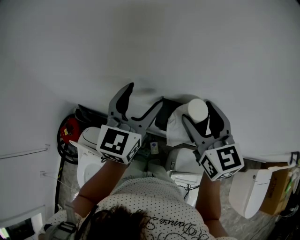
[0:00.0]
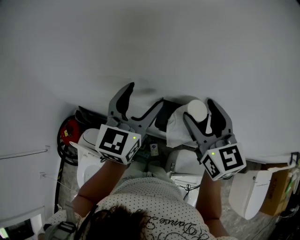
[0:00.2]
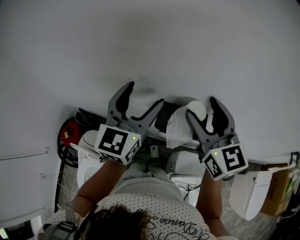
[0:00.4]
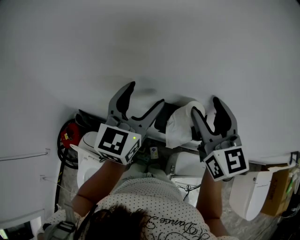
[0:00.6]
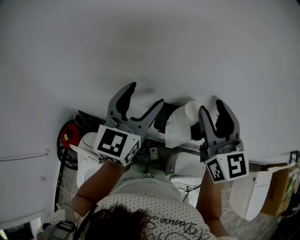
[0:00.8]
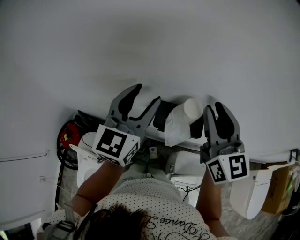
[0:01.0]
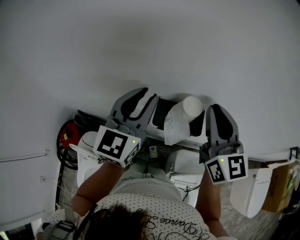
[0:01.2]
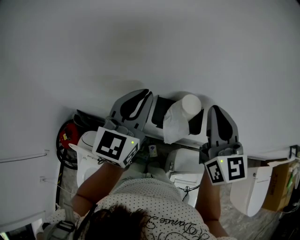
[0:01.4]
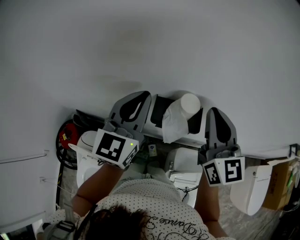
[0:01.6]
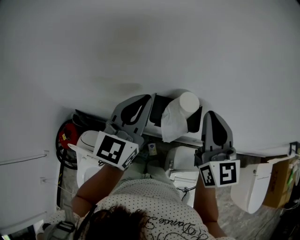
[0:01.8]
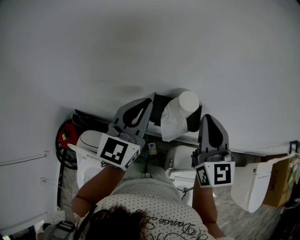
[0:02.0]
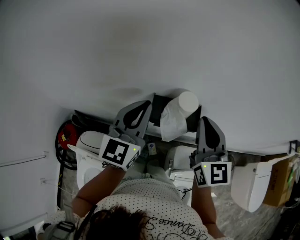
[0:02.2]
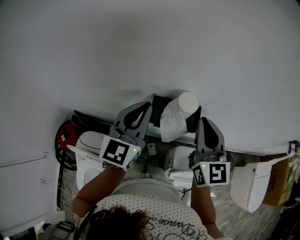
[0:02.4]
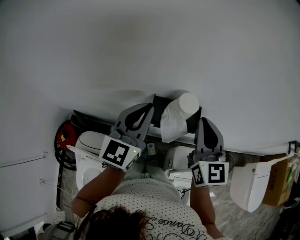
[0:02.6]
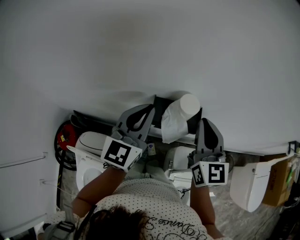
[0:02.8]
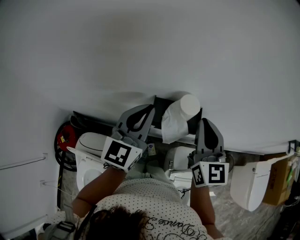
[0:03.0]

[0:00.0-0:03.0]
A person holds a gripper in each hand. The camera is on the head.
0:00.0 to 0:01.6: The right gripper is displaced to the right by about 5 cm, rotates roughly 20 degrees, and closes up. The left gripper closes.
0:01.6 to 0:03.0: The right gripper heads downward, covering some 5 cm, while the left gripper shifts by some 5 cm.

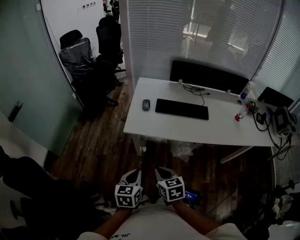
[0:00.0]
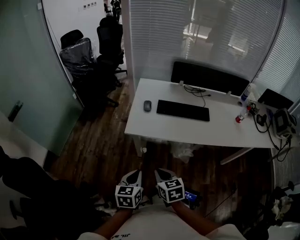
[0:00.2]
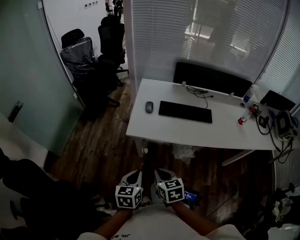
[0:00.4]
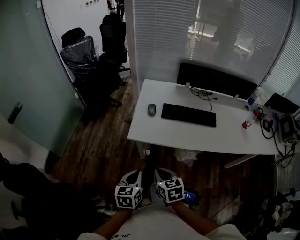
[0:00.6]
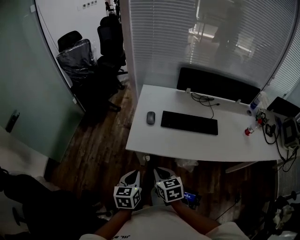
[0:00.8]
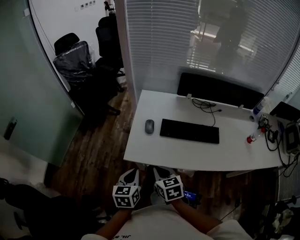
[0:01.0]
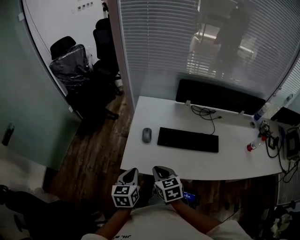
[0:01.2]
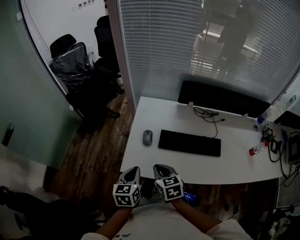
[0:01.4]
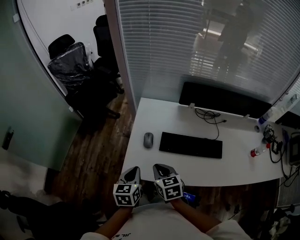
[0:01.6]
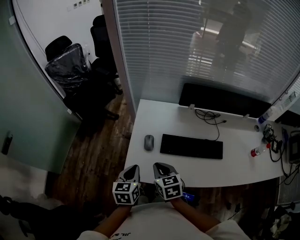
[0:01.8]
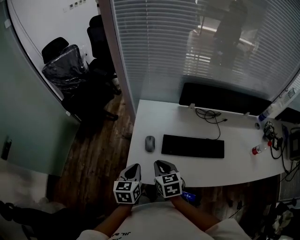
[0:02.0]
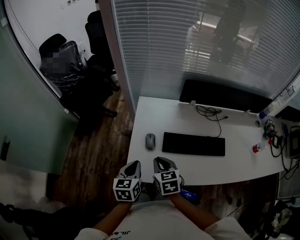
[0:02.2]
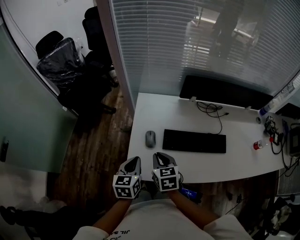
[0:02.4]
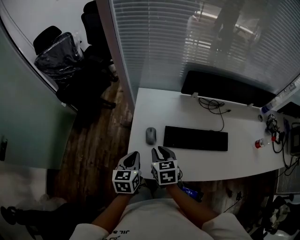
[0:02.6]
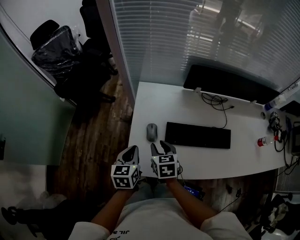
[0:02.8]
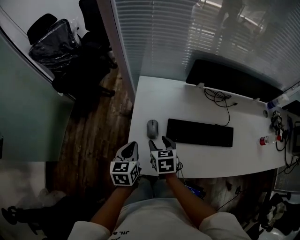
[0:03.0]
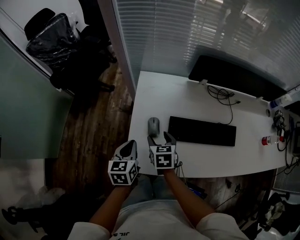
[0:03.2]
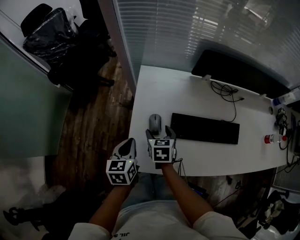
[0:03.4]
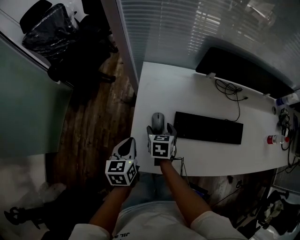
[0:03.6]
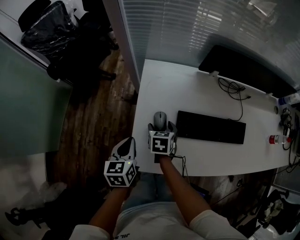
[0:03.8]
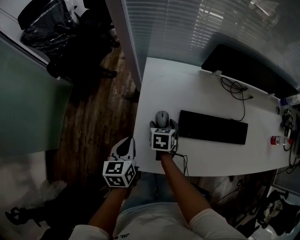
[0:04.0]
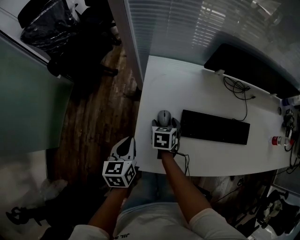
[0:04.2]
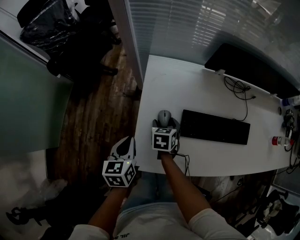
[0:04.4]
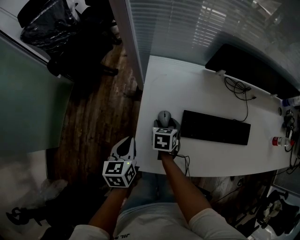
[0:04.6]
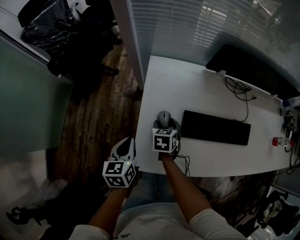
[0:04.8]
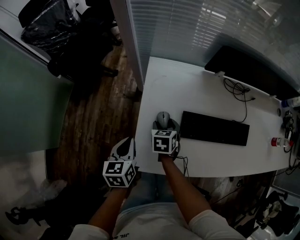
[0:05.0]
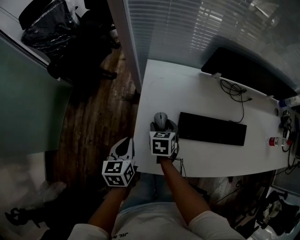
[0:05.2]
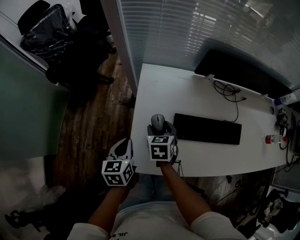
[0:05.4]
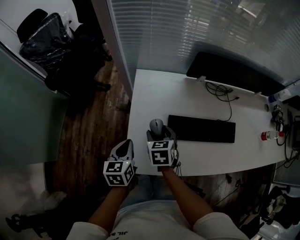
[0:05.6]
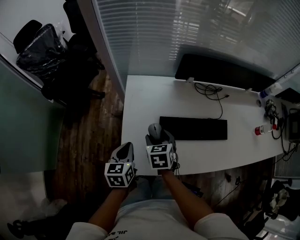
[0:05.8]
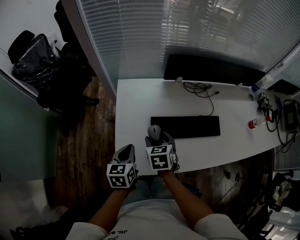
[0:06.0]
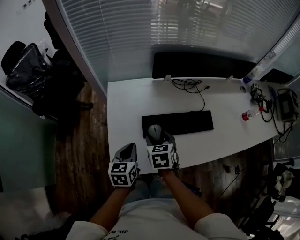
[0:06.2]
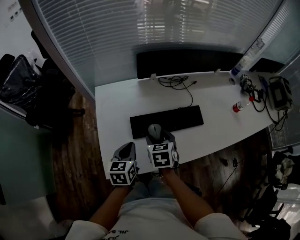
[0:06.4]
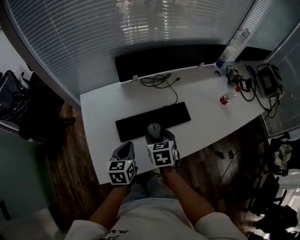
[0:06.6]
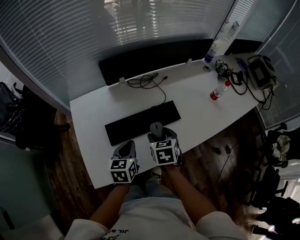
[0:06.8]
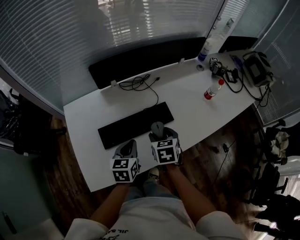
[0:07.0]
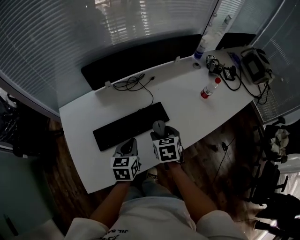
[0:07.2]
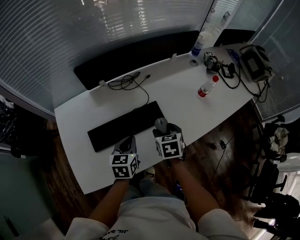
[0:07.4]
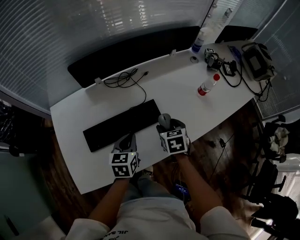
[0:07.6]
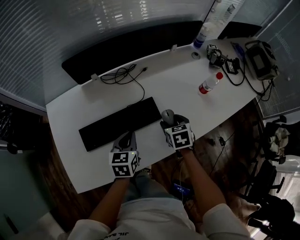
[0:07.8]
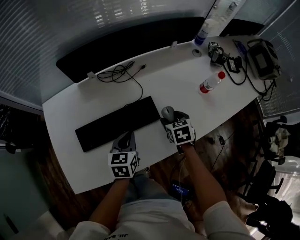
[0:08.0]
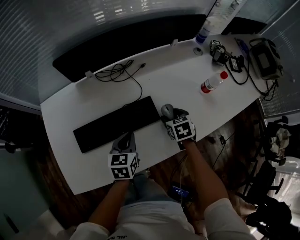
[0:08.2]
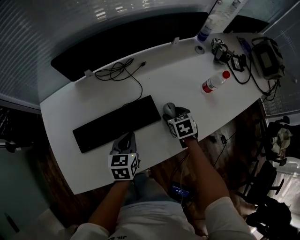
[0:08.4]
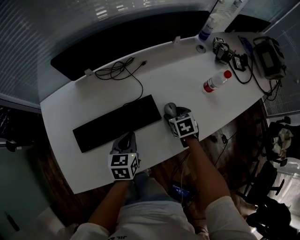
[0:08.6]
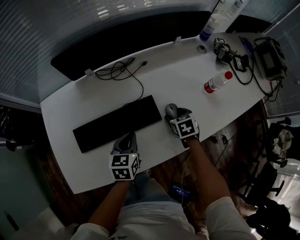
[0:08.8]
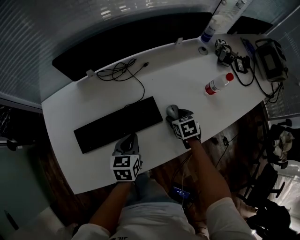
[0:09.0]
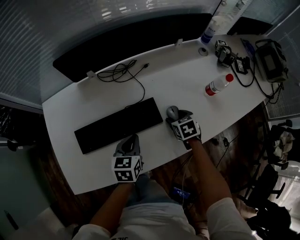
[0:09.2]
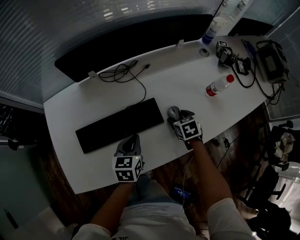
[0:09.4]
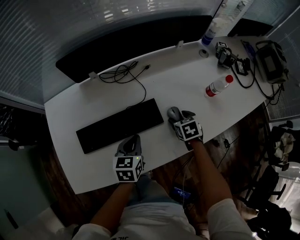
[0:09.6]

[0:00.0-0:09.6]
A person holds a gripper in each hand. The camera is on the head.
0:00.0 to 0:01.6: Both grippers move forward, about 35 cm.
0:01.6 to 0:03.2: The two grippers go approximately 15 cm forward and downward. The right gripper opens up.
0:03.2 to 0:04.8: The left gripper goes some 5 cm to the left; the right gripper is displaced downward and forward by some 10 cm.
0:04.8 to 0:06.4: The right gripper shifts some 25 cm to the right, upward and backward; the left gripper is displaced to the right by roughly 20 cm, and turns by about 20 degrees.
0:06.4 to 0:08.0: Both grippers travel together to the right and forward, some 35 cm.
0:08.0 to 0:09.6: The right gripper travels downward by about 5 cm.

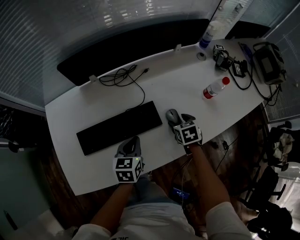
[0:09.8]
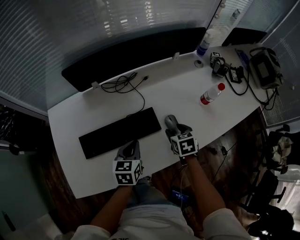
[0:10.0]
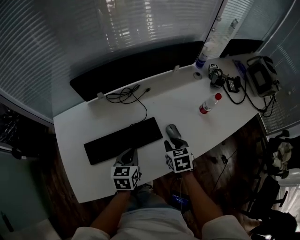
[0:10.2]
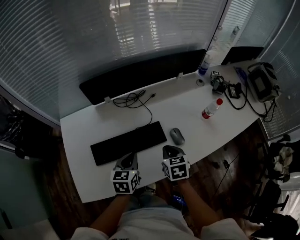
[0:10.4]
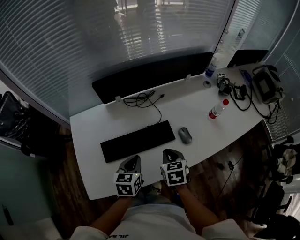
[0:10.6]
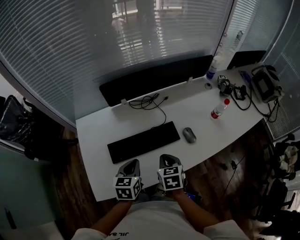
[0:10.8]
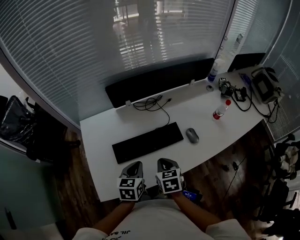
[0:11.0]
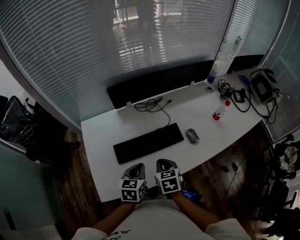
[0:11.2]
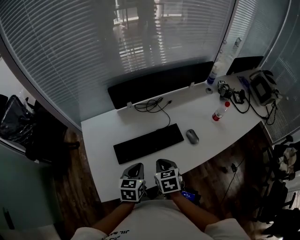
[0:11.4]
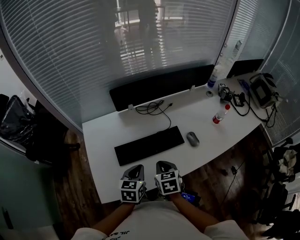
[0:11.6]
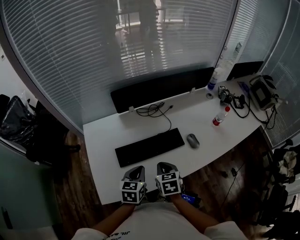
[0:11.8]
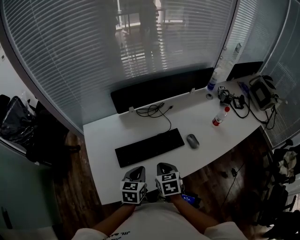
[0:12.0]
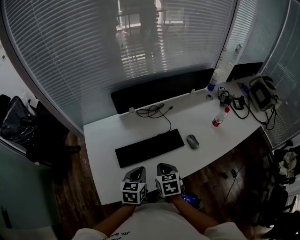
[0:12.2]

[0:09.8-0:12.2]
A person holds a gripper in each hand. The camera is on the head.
0:09.8 to 0:11.0: The left gripper is displaced to the left, upward and backward by roughly 20 cm. Meanwhile the right gripper goes approximately 30 cm to the left, backward and upward, and closes its fingers.
0:11.0 to 0:12.2: There are only small adjustments of the grippers.

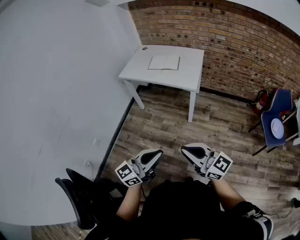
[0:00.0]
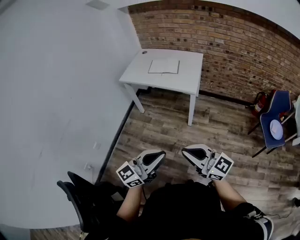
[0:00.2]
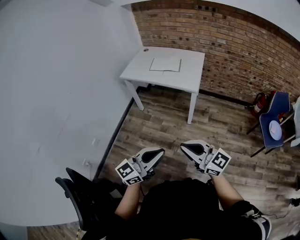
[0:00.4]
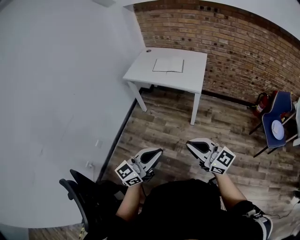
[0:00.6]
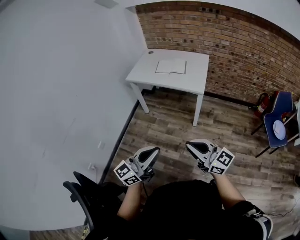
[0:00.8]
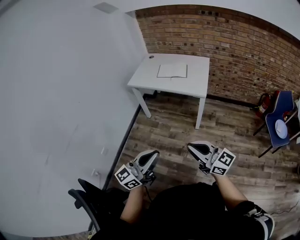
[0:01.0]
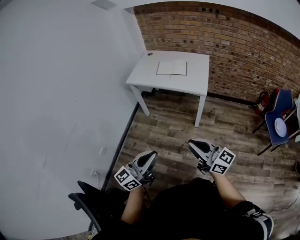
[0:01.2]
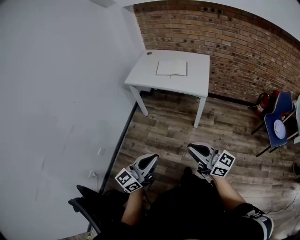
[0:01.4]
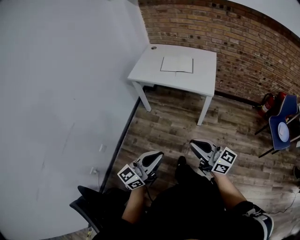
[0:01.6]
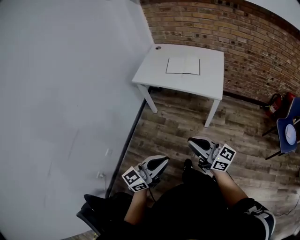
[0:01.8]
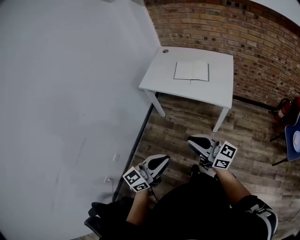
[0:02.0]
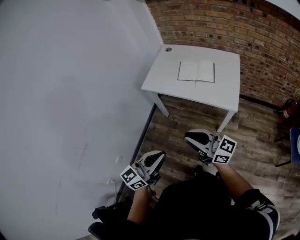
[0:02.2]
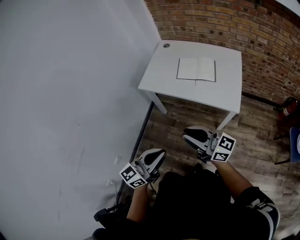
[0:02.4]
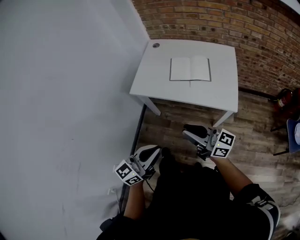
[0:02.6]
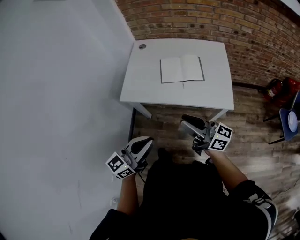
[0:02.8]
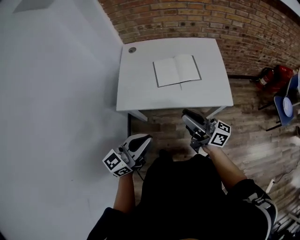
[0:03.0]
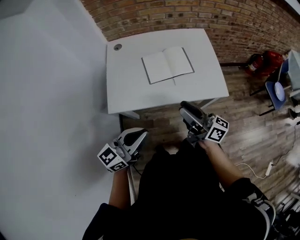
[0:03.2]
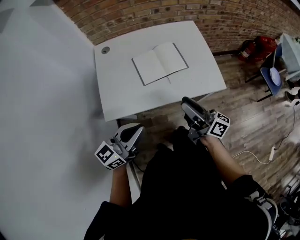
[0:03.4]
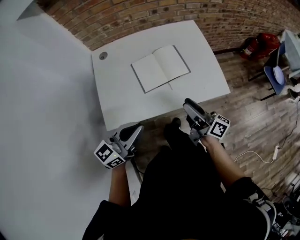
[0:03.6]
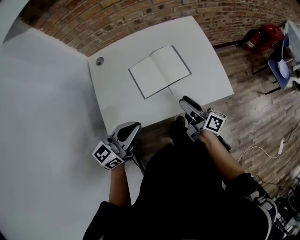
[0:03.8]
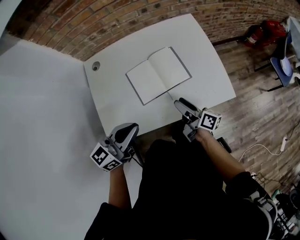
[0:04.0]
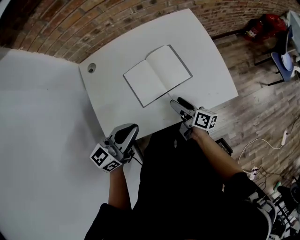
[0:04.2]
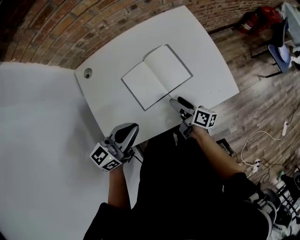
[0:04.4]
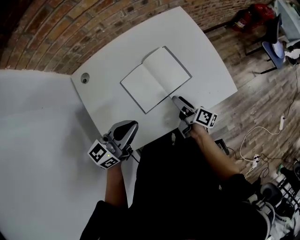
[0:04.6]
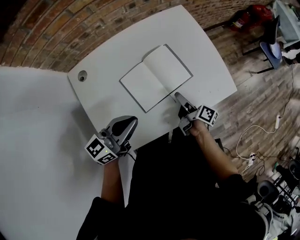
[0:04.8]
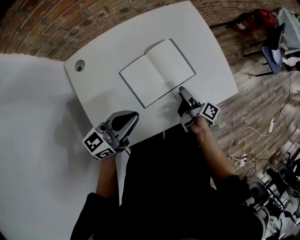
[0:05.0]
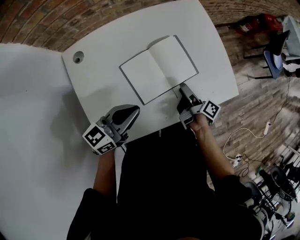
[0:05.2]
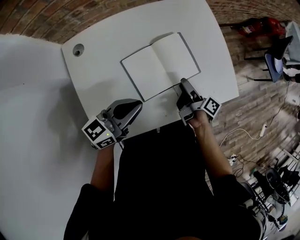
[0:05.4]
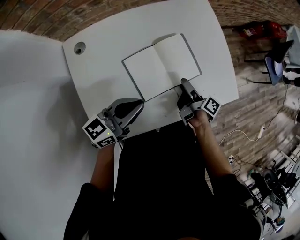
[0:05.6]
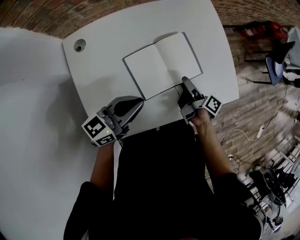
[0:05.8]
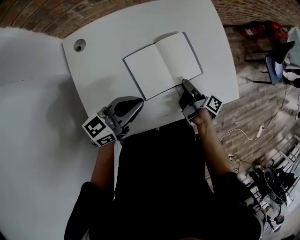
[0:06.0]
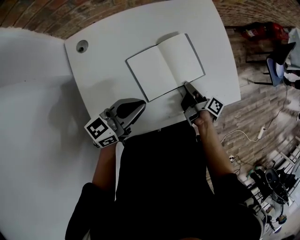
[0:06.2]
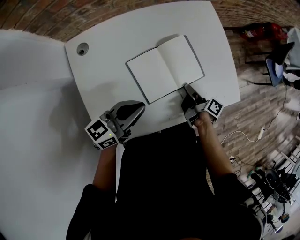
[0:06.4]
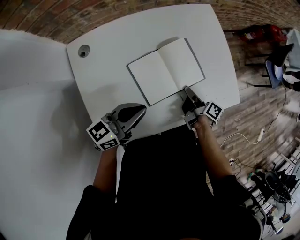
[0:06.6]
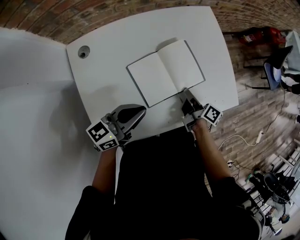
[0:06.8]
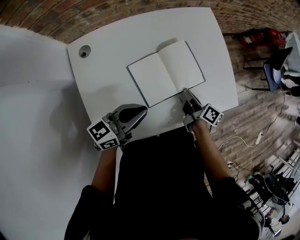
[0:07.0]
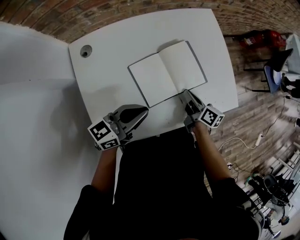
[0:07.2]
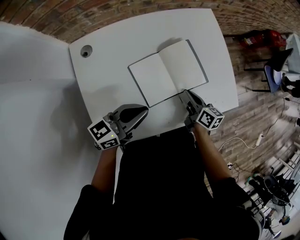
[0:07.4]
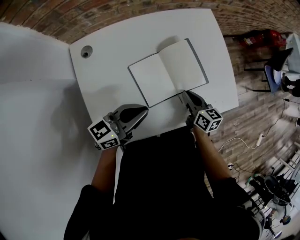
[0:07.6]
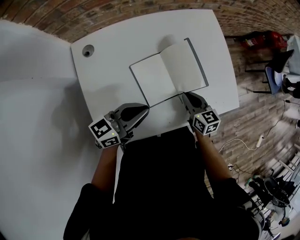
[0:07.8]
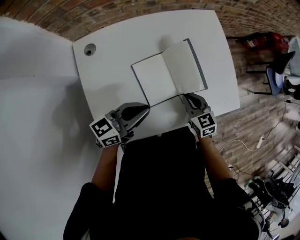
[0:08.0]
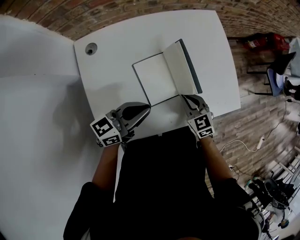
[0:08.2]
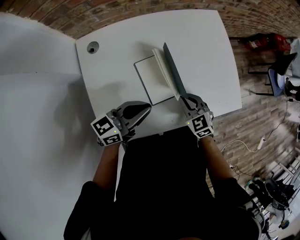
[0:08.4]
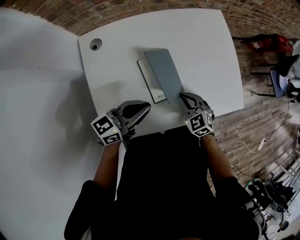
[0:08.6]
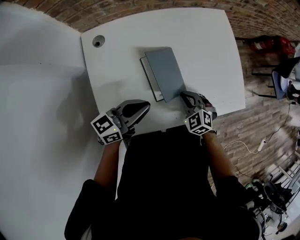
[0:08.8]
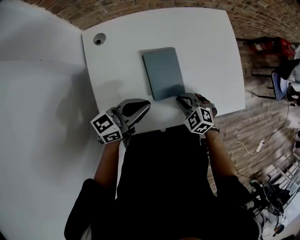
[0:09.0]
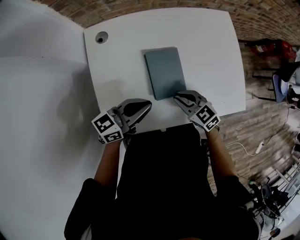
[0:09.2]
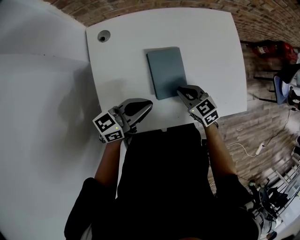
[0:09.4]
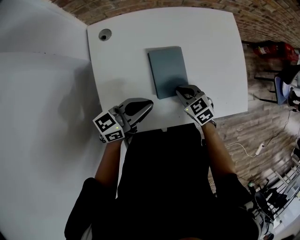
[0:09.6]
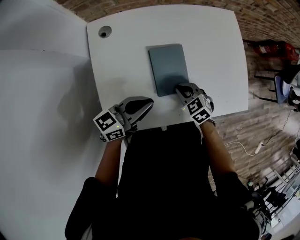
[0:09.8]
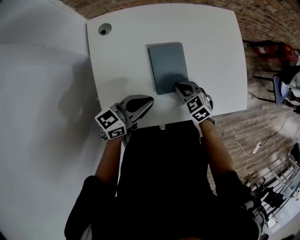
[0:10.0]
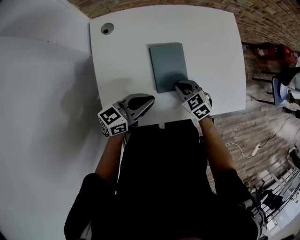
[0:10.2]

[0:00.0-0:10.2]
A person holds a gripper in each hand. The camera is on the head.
0:00.0 to 0:01.4: The right gripper travels to the left and forward by approximately 10 cm. Meanwhile the left gripper moves to the left, roughly 15 cm.
0:01.4 to 0:03.0: The pair of grippers is taken approximately 50 cm. The right gripper turns by about 30 degrees; the left gripper turns by some 20 degrees.
0:03.0 to 0:04.4: The right gripper heads downward, covering roughly 25 cm, angles its fingers downward, by roughly 30 degrees, and opens its fingers. Meanwhile the left gripper moves roughly 35 cm, and rotates about 30 degrees.
0:04.4 to 0:05.8: The right gripper heads forward, covering roughly 5 cm, and turns by about 20 degrees. Meanwhile the left gripper goes approximately 10 cm downward and forward.
0:05.8 to 0:07.2: The right gripper swivels roughly 30 degrees, and closes up.
0:07.2 to 0:08.8: The right gripper goes roughly 10 cm to the left and backward, and rotates around the line of its fingers by roughly 90 degrees, counterclockwise from behind.
